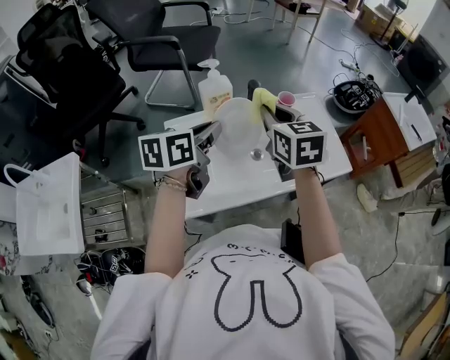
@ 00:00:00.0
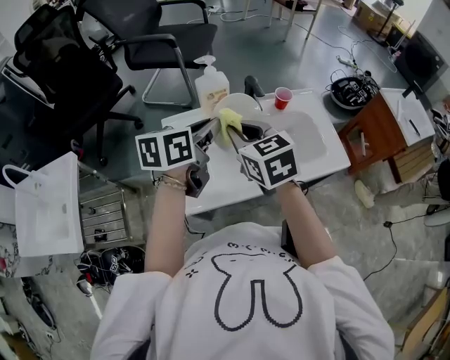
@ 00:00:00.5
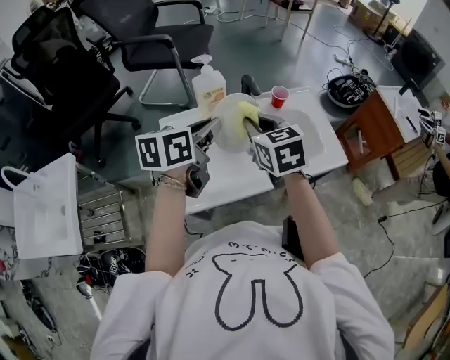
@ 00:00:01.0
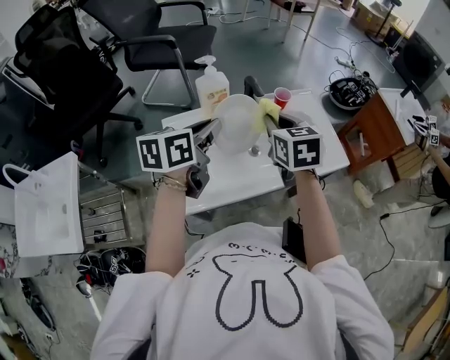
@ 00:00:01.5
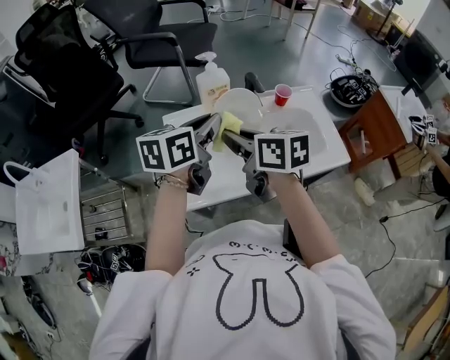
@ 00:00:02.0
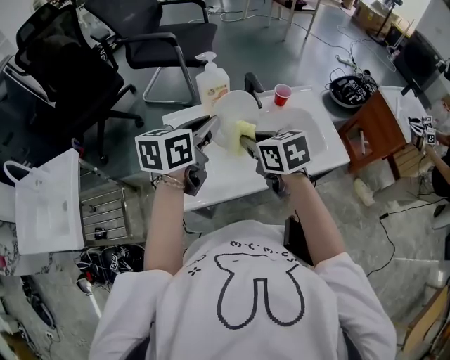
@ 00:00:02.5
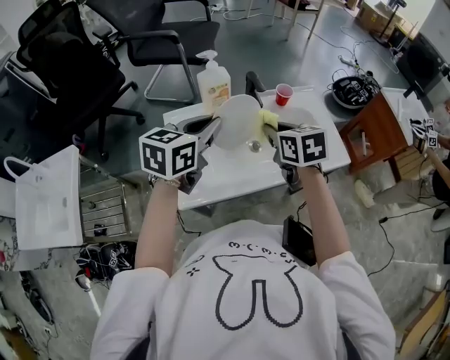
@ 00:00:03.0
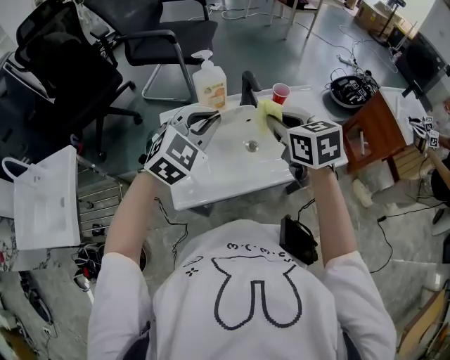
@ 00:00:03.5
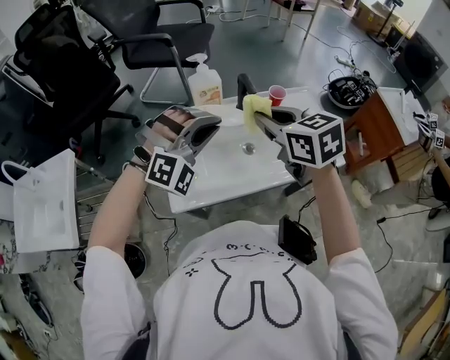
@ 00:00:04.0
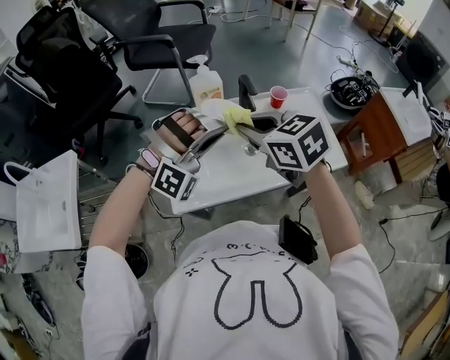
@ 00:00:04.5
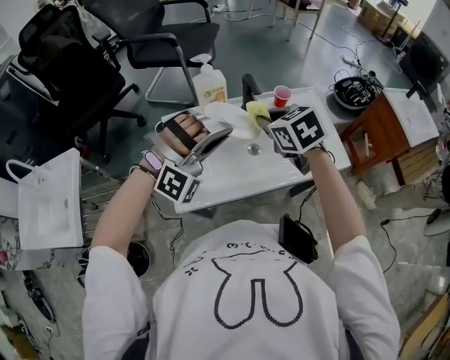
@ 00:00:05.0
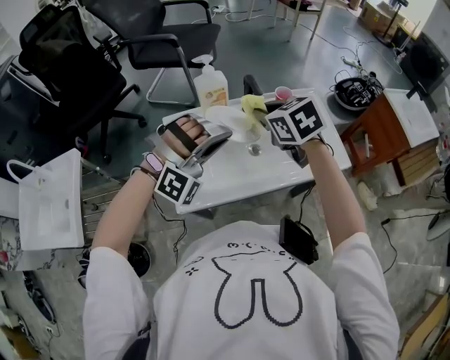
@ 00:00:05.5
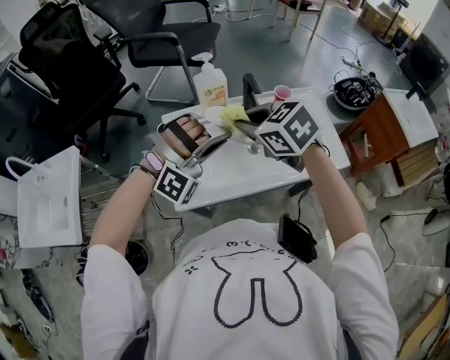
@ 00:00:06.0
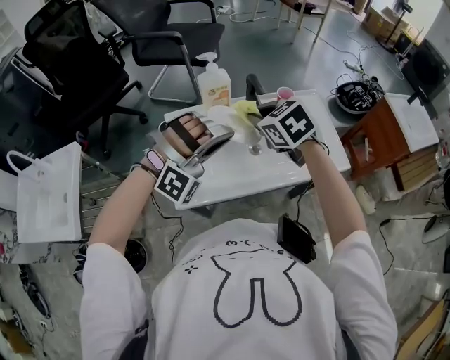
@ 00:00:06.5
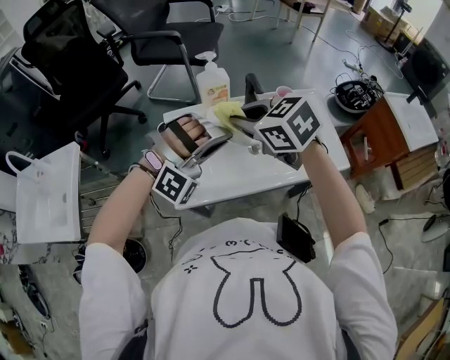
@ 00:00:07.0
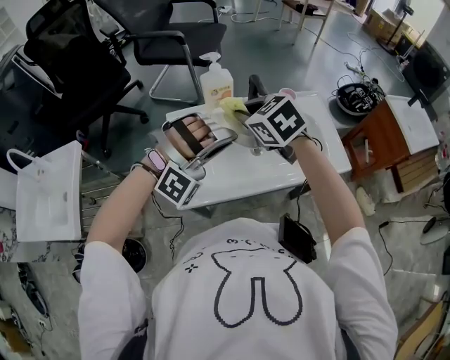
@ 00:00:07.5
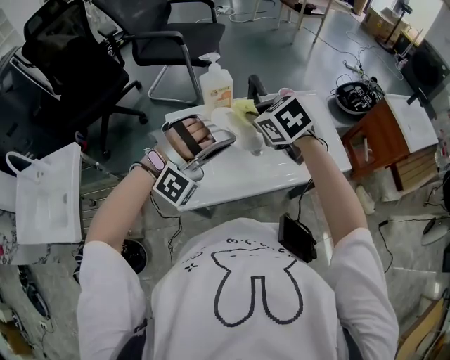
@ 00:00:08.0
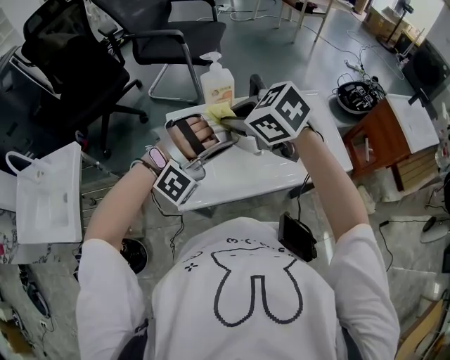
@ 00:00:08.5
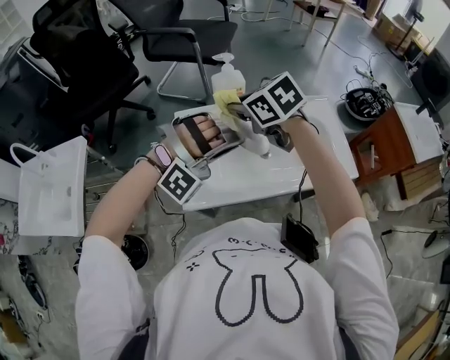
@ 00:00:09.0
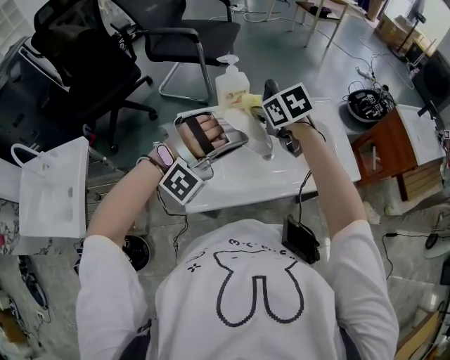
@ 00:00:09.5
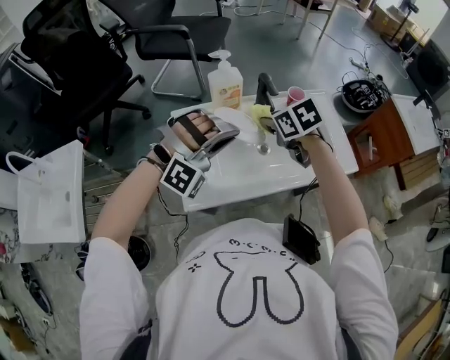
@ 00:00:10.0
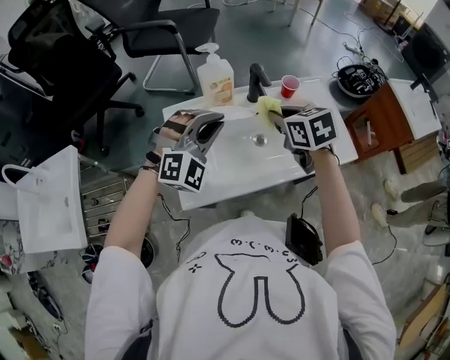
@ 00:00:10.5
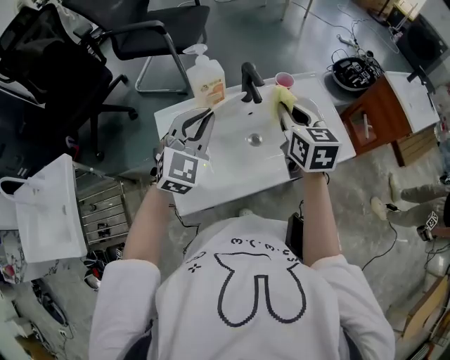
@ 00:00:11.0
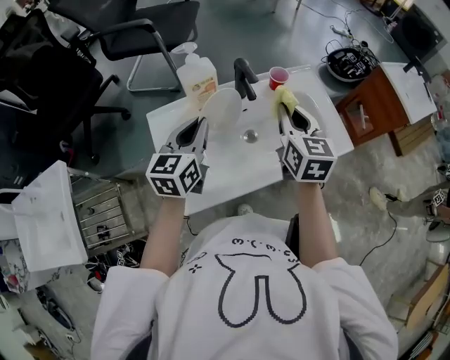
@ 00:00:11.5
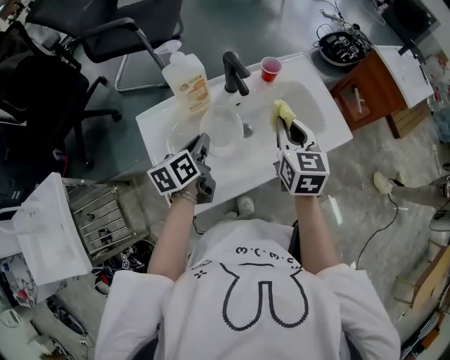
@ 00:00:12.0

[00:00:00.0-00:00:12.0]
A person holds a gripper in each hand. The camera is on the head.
00:00:00.0 to 00:00:02.0: The right gripper swings left and right, roughly 10 cm each way, with 2 reversals, and rotates approximately 30 degrees.
00:00:02.0 to 00:00:04.0: The right gripper travels to the right by roughly 10 cm, and rotates about 30 degrees; the left gripper rotates around the line of its fingers by about 110 degrees, clockwise from behind.
00:00:04.0 to 00:00:06.0: The right gripper goes some 5 cm to the left, and turns by approximately 20 degrees.
00:00:06.0 to 00:00:08.0: The right gripper ends up roughly 5 cm from where it was.
00:00:08.0 to 00:00:10.0: The right gripper moves downward, some 5 cm.
00:00:10.0 to 00:00:12.0: The right gripper shifts approximately 10 cm to the right, and changes its angle by some 50 degrees. Meanwhile the left gripper shifts roughly 15 cm downward and forward, and rotates around the line of its fingers by some 140 degrees, counterclockwise from behind.

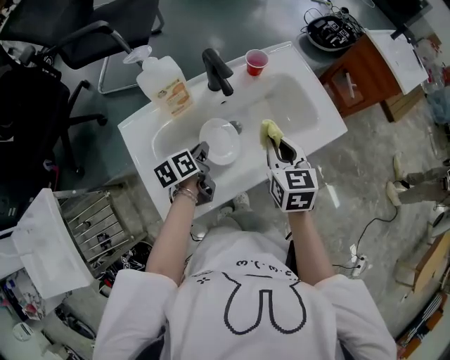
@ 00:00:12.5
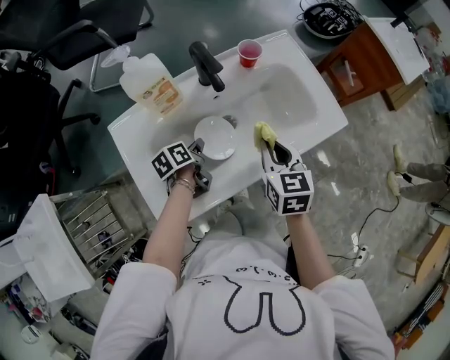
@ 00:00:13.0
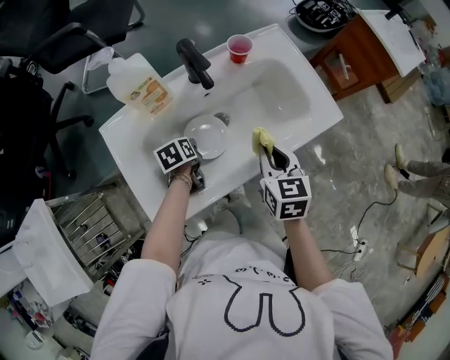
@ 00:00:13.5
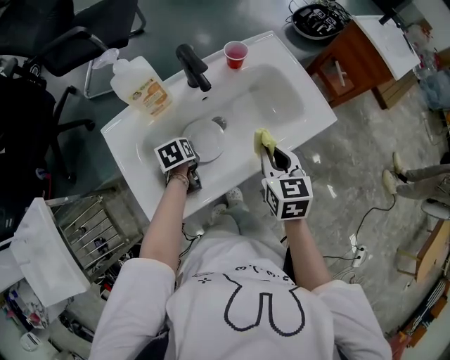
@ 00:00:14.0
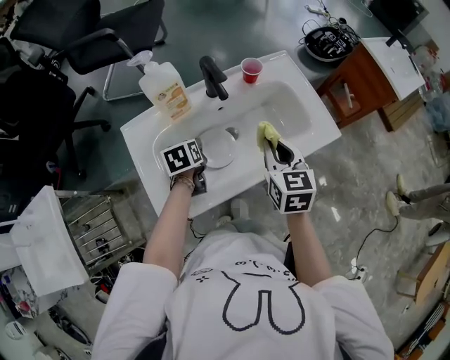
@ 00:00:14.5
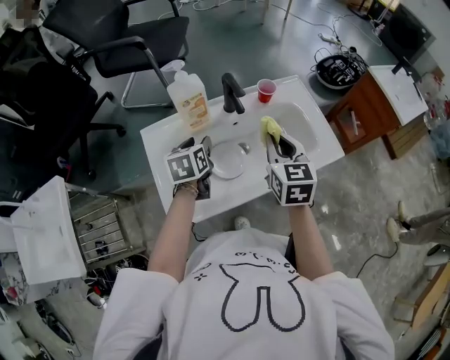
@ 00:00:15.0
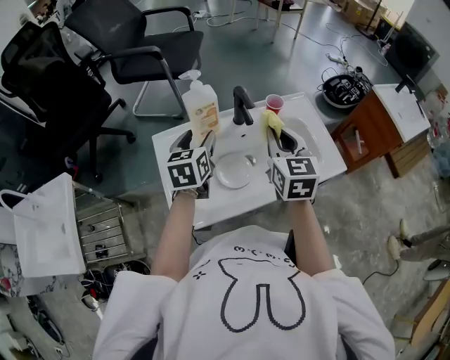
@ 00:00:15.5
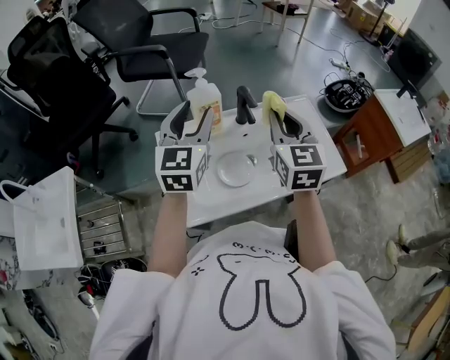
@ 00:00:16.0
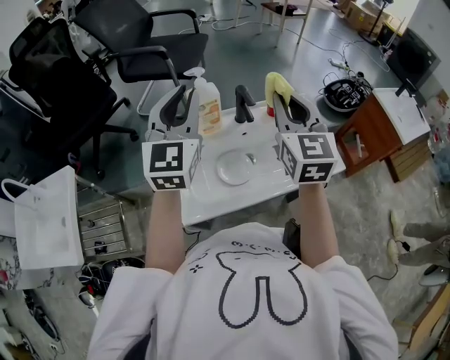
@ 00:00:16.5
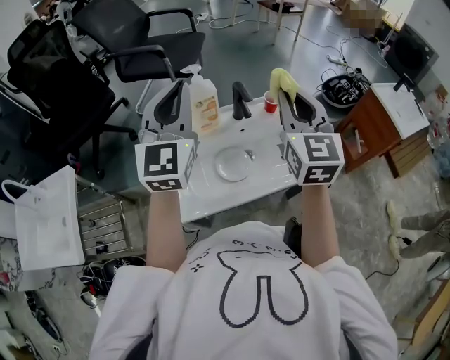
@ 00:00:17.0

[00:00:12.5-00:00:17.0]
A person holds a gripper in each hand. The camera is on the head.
00:00:12.5 to 00:00:14.5: The left gripper reaches roughly 10 cm downward, then returns, changes its angle by about 30 degrees, and opens.
00:00:14.5 to 00:00:17.0: The right gripper moves upward, roughly 25 cm, and swivels approximately 30 degrees, while the left gripper travels upward by some 40 cm, angles its fingers upward, by roughly 60 degrees, and closes its fingers.

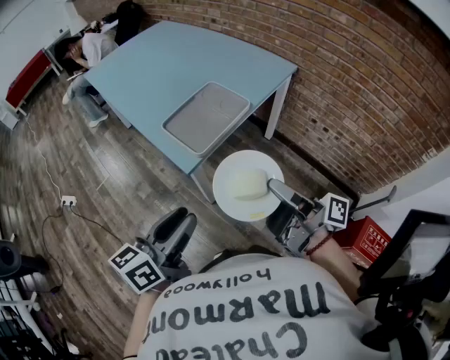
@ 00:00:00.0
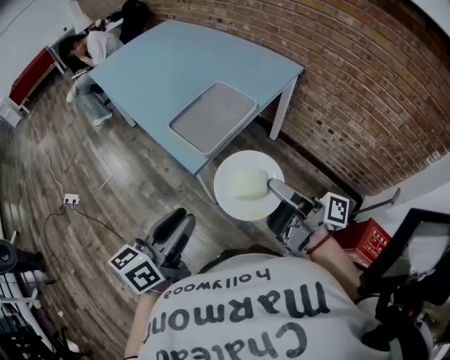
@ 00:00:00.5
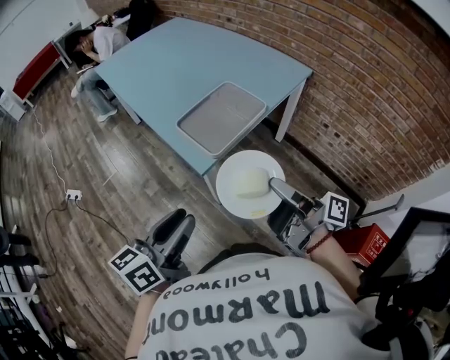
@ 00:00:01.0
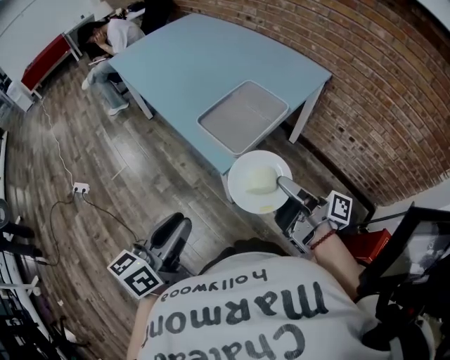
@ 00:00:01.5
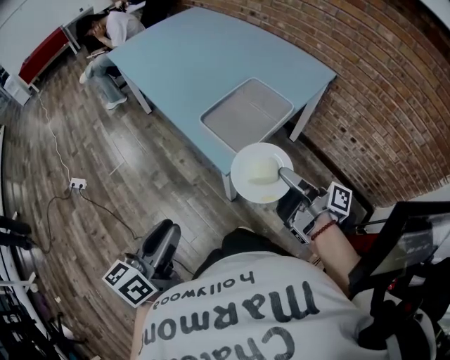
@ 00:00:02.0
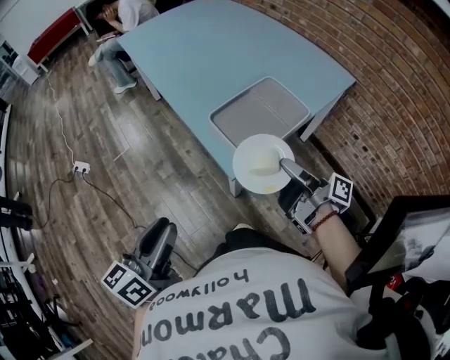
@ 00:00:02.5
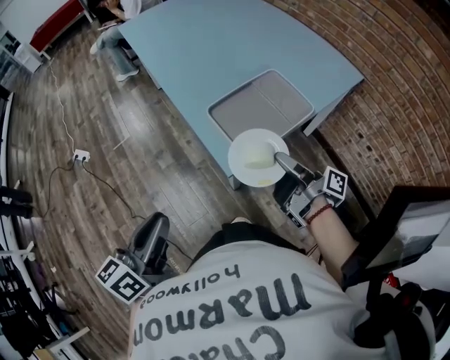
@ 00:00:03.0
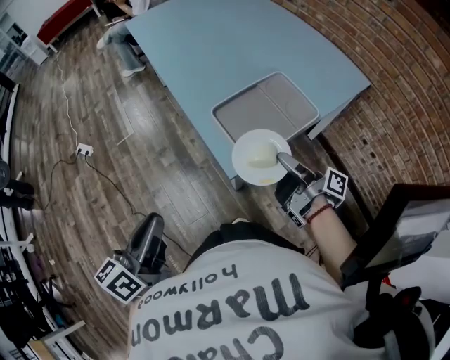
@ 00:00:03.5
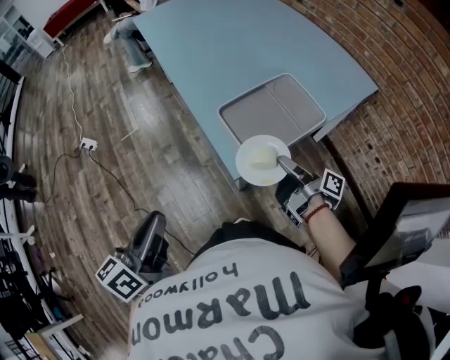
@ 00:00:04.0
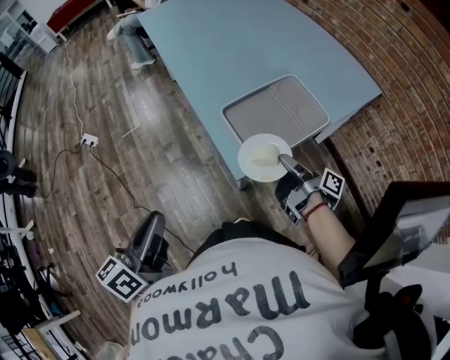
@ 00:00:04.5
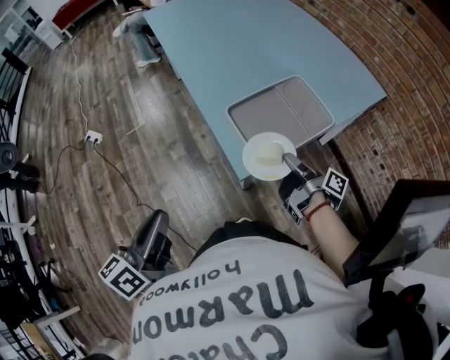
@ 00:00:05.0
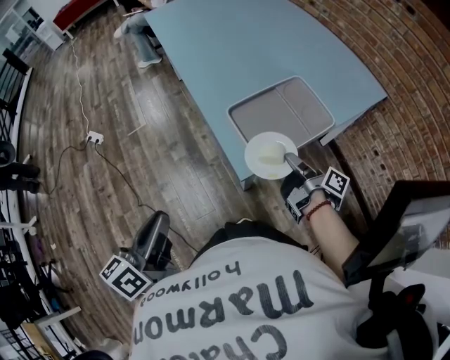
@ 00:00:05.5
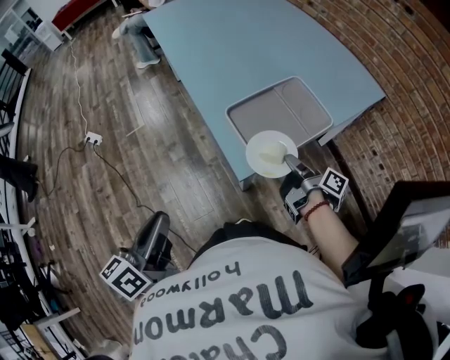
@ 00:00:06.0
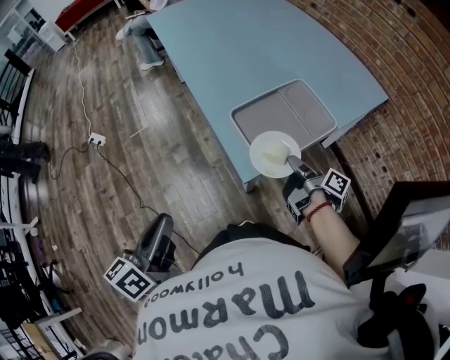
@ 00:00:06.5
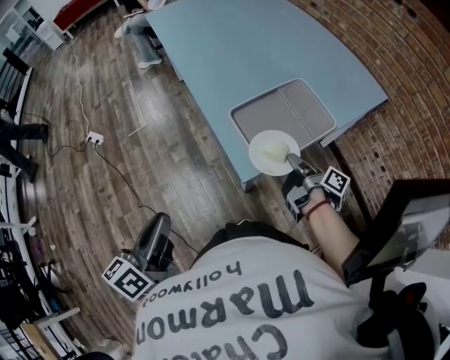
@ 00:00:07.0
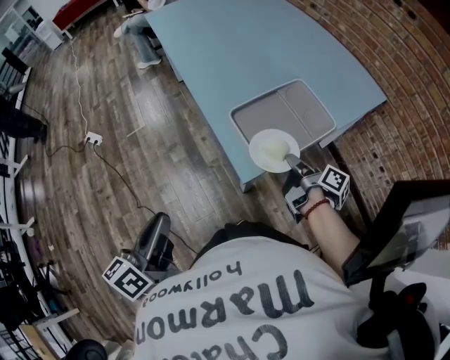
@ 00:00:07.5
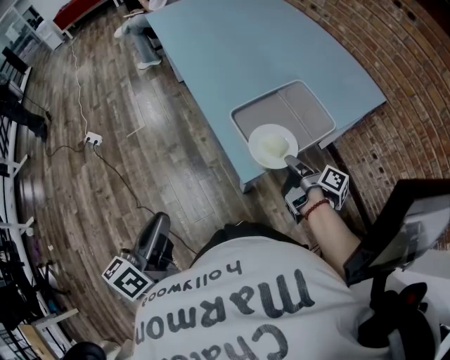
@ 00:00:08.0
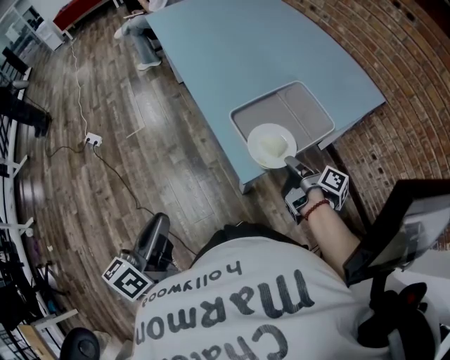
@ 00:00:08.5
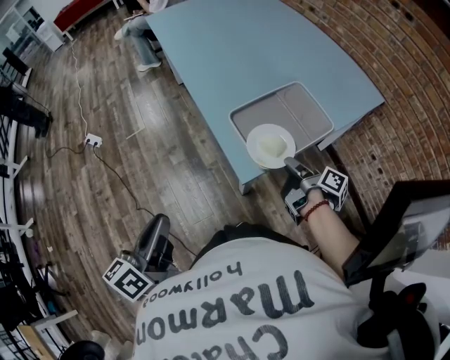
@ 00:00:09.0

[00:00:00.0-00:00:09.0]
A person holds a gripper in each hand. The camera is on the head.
00:00:00.0 to 00:00:02.0: The left gripper shifts by approximately 15 cm.
00:00:02.0 to 00:00:04.5: The left gripper changes place by roughly 5 cm.

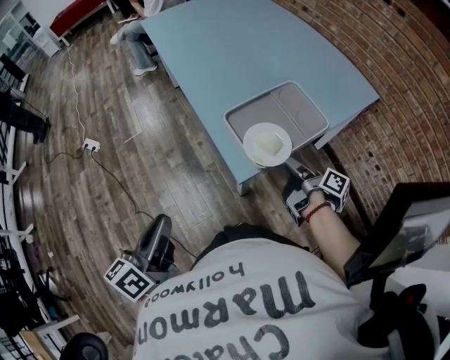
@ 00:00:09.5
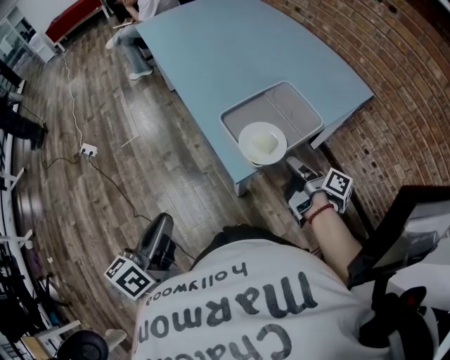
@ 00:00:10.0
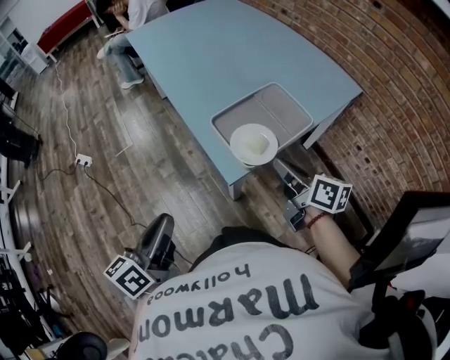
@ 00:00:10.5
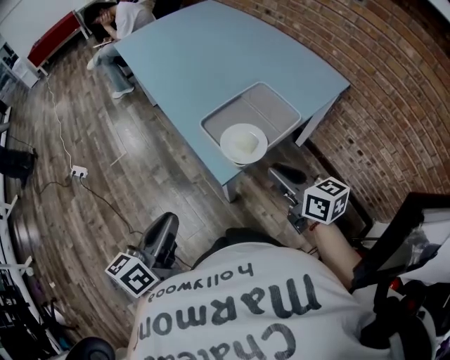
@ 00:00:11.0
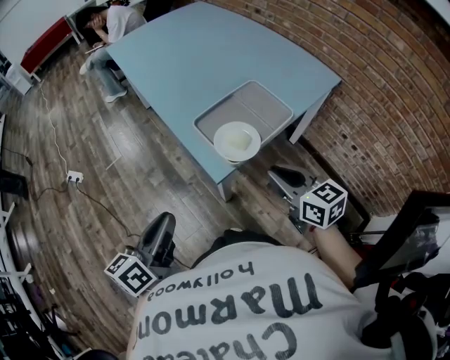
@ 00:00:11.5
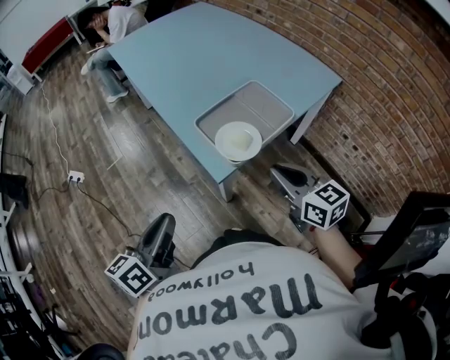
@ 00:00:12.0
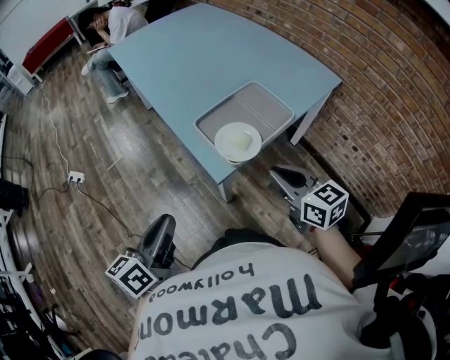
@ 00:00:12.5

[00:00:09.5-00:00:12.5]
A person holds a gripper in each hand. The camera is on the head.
00:00:09.5 to 00:00:11.0: The left gripper moves roughly 5 cm.
